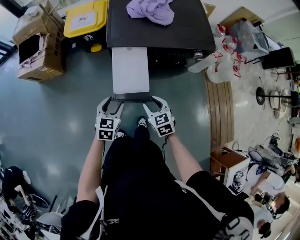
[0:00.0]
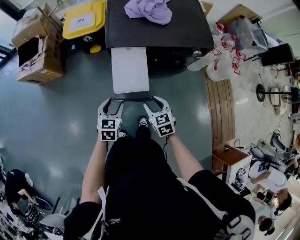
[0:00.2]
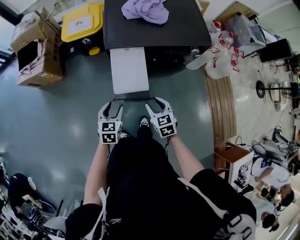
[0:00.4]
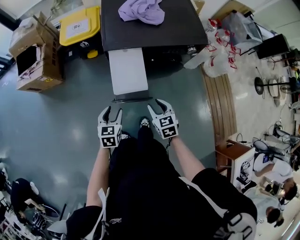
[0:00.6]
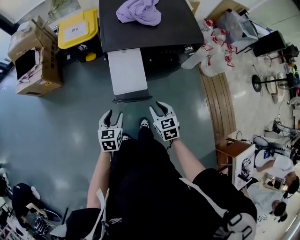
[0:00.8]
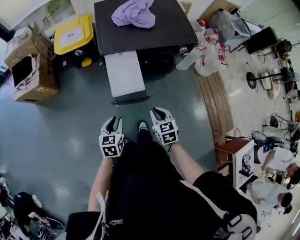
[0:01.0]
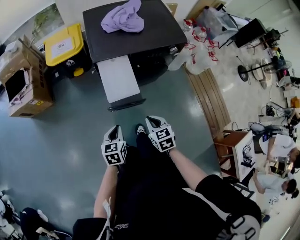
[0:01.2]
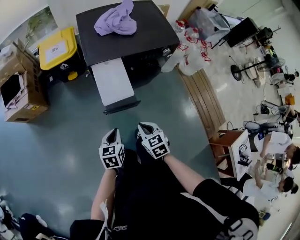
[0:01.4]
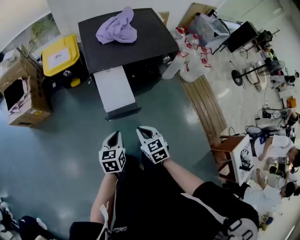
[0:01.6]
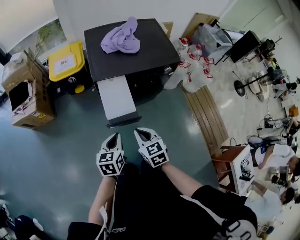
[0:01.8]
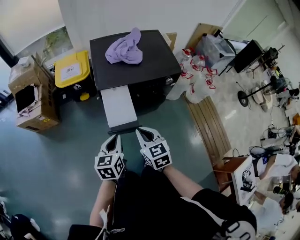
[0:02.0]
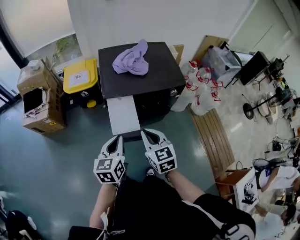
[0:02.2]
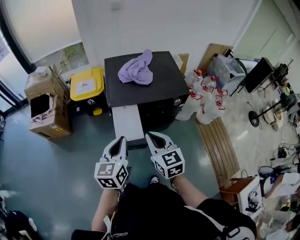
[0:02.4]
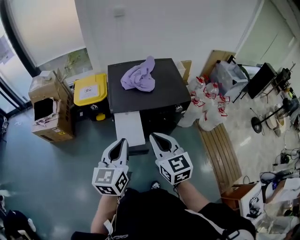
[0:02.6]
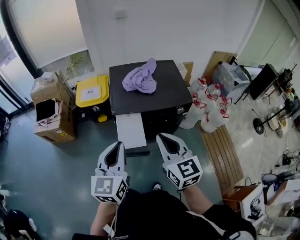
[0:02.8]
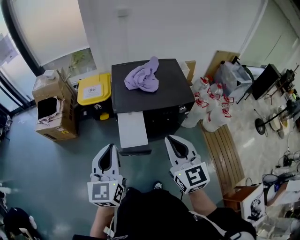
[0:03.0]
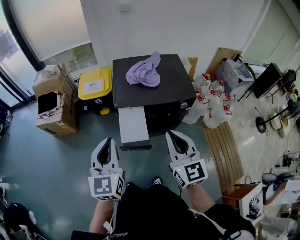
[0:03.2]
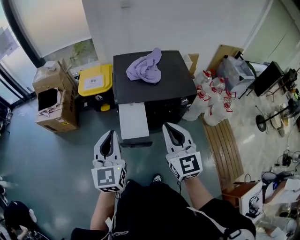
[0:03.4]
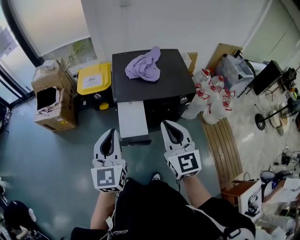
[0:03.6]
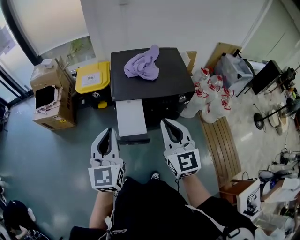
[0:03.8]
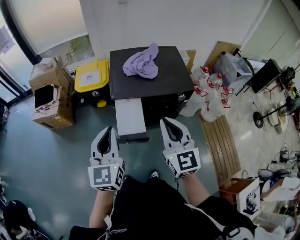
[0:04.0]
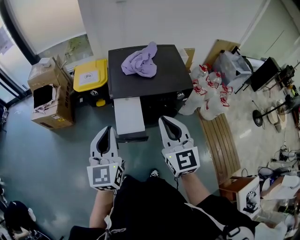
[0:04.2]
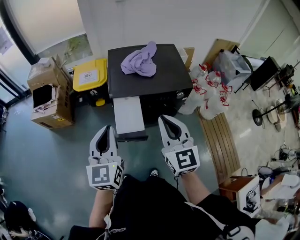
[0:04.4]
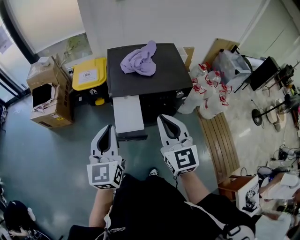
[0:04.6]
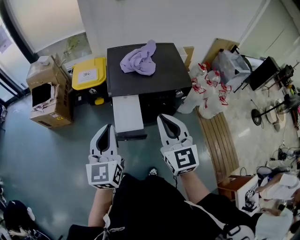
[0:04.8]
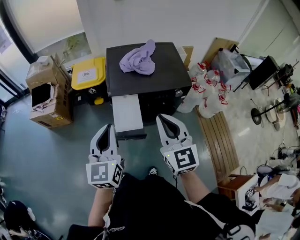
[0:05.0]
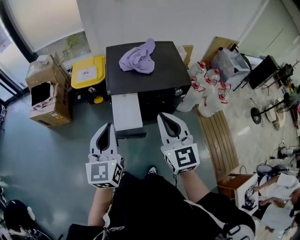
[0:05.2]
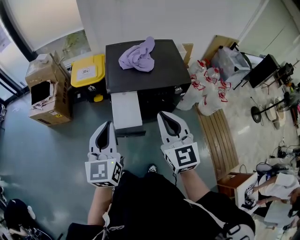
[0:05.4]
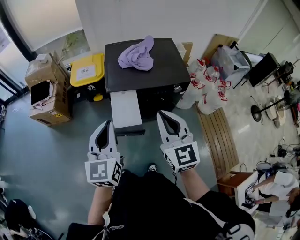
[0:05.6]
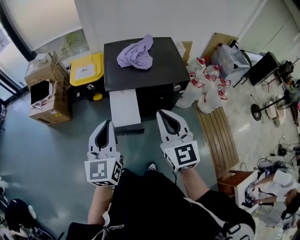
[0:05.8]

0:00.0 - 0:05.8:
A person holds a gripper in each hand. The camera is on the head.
0:00.0 - 0:01.4: The grippers both shift backward by about 10 cm. The left gripper closes up; the right gripper closes up.
0:01.4 - 0:02.8: The grippers both shift upward by approximately 35 cm. The left gripper angles its fingers upward, by roughly 30 degrees; the right gripper tips its fingers upward by some 30 degrees.
0:02.8 - 0:05.8: The grippers make only small movements.

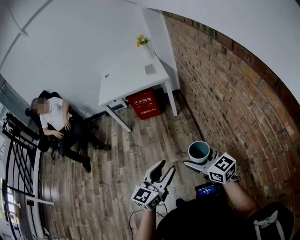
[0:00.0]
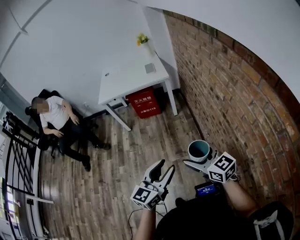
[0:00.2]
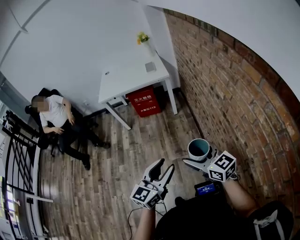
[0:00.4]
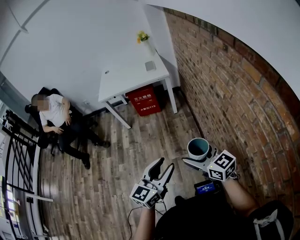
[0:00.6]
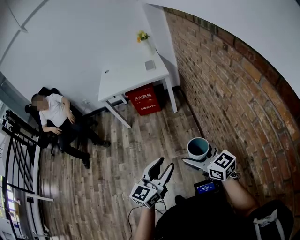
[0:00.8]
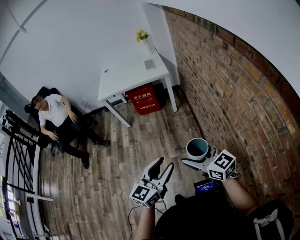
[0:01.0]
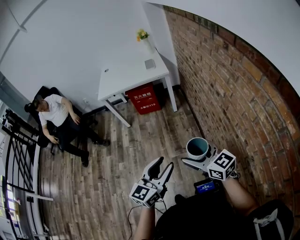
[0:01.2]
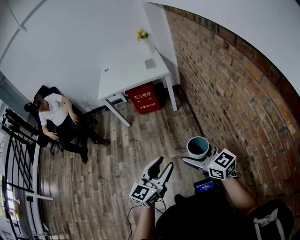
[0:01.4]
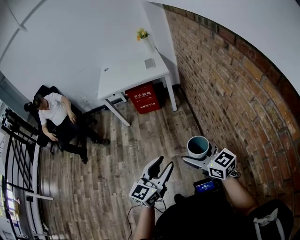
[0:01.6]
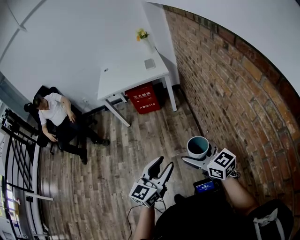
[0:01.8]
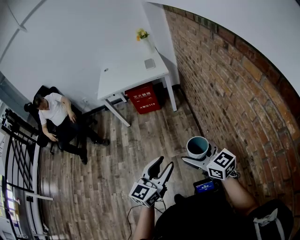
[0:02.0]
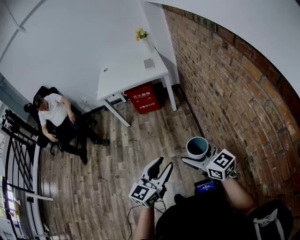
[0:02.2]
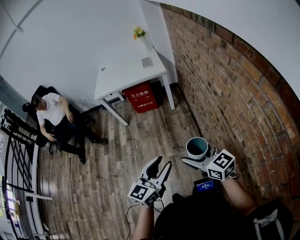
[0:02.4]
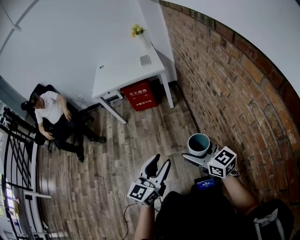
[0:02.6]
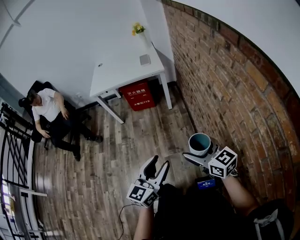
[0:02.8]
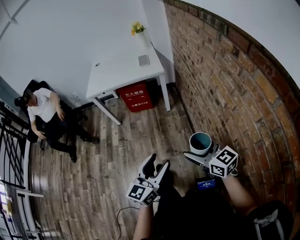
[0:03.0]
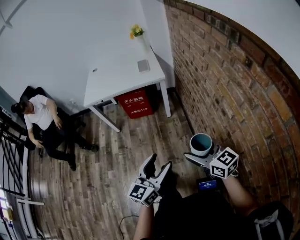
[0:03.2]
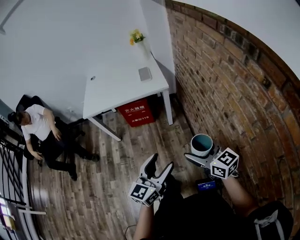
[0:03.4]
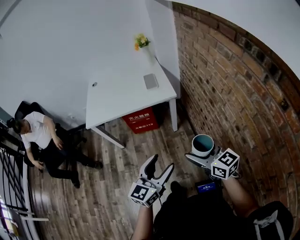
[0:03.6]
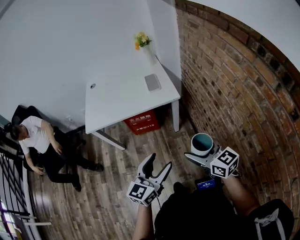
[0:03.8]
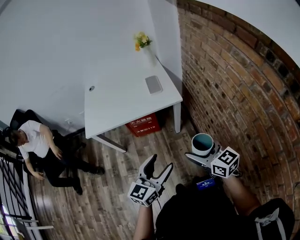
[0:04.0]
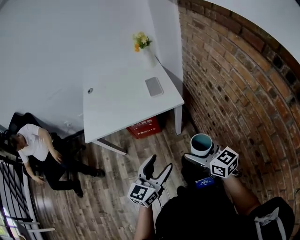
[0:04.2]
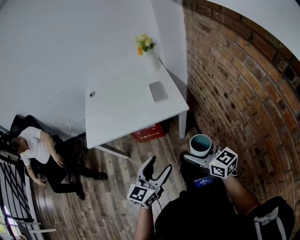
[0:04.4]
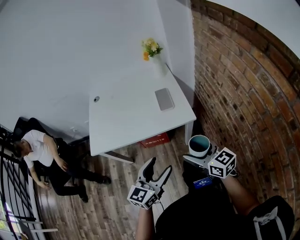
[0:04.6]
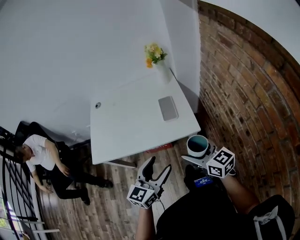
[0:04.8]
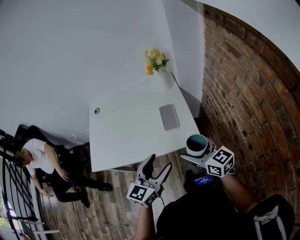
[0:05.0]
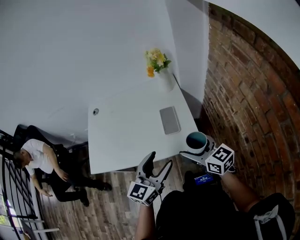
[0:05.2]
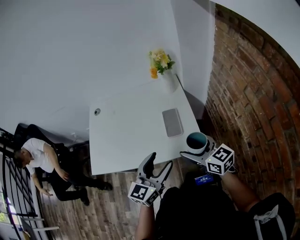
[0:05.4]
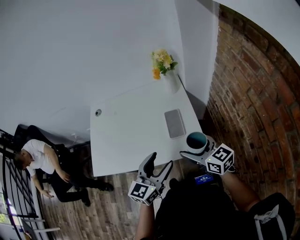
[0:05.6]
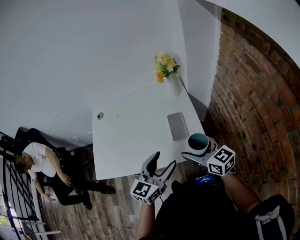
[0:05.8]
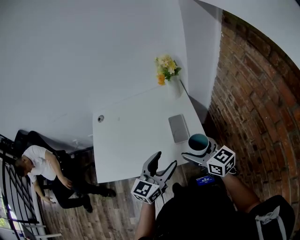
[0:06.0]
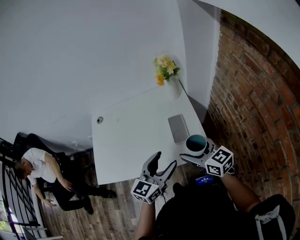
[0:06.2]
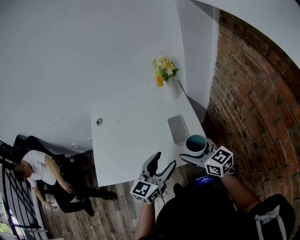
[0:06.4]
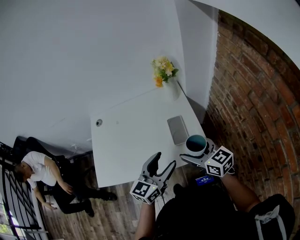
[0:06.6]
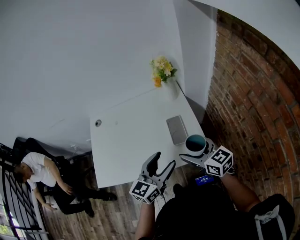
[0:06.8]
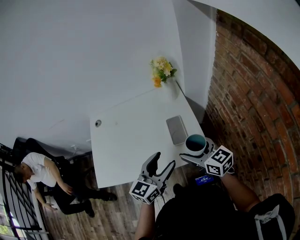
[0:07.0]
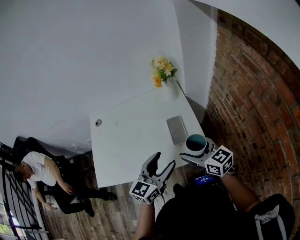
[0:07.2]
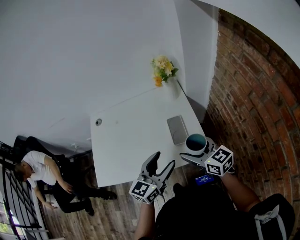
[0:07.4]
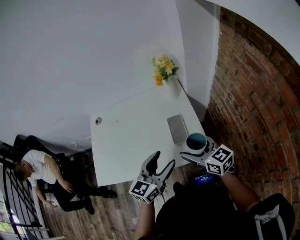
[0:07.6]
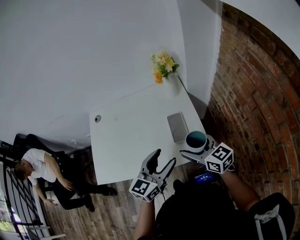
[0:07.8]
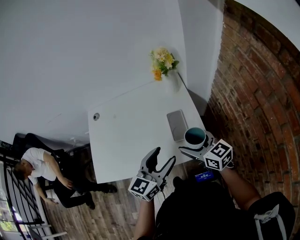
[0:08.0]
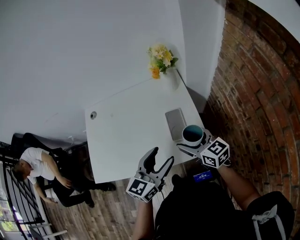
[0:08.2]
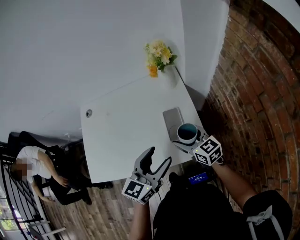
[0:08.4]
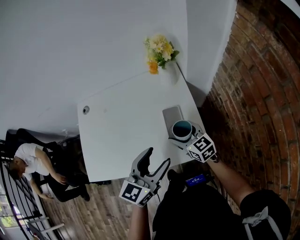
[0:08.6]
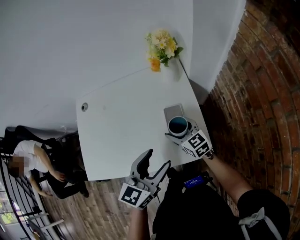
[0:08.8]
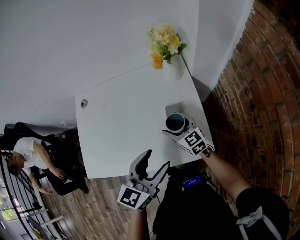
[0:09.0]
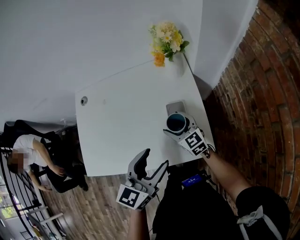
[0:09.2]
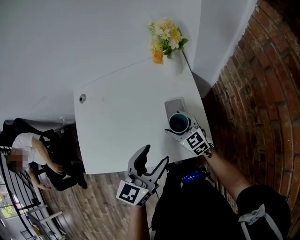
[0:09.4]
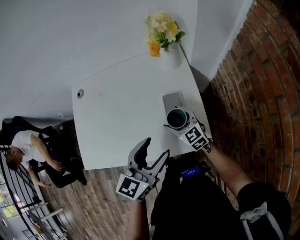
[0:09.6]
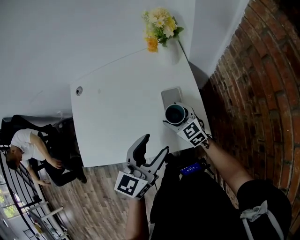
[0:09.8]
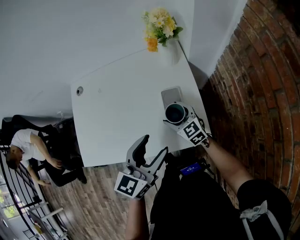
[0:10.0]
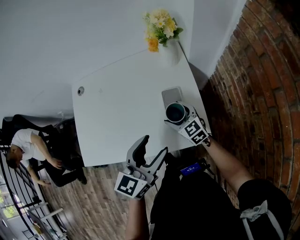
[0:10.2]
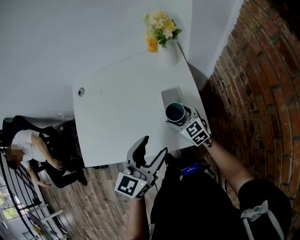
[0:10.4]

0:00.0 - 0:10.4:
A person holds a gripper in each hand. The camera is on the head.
0:00.0 - 0:01.4: Both grippers stay put.
0:01.4 - 0:03.0: The left gripper heads forward, covering about 10 cm. The right gripper goes approximately 10 cm forward and to the right.
0:03.0 - 0:04.4: Both grippers are carried forward, about 50 cm.
0:04.4 - 0:06.0: Both grippers move forward, about 30 cm.
0:06.0 - 0:07.4: The grippers move only a little.
0:07.4 - 0:09.0: The left gripper shifts approximately 5 cm forward. The right gripper shifts some 25 cm downward and forward.
0:09.0 - 0:10.4: There are only small adjustments of the grippers.

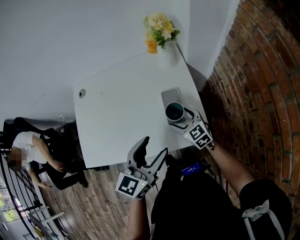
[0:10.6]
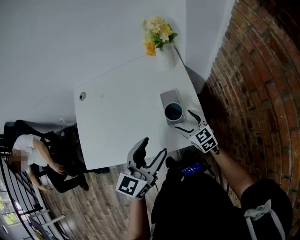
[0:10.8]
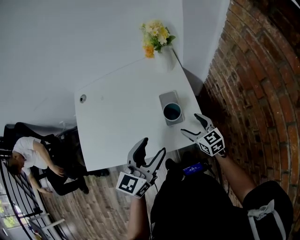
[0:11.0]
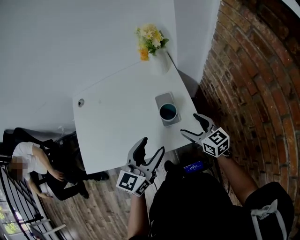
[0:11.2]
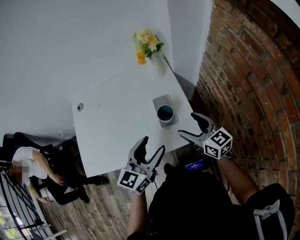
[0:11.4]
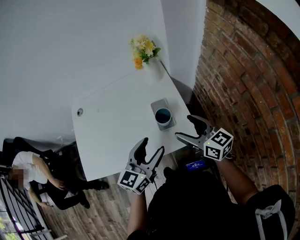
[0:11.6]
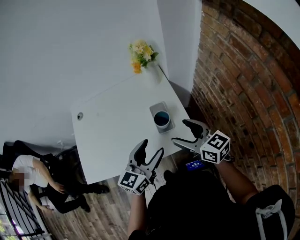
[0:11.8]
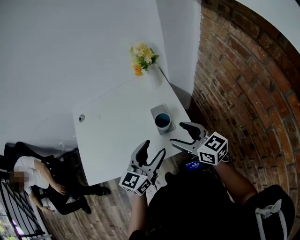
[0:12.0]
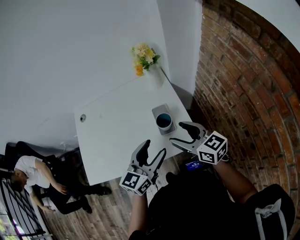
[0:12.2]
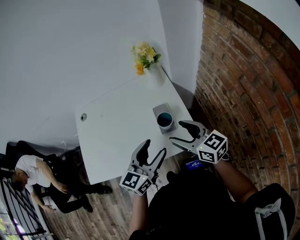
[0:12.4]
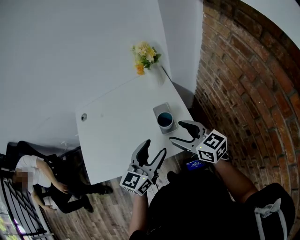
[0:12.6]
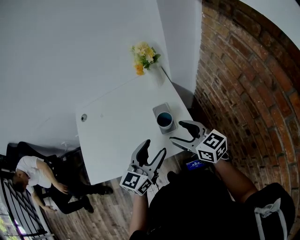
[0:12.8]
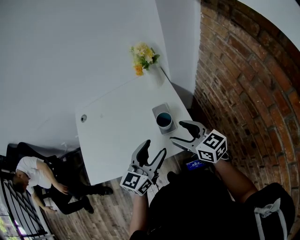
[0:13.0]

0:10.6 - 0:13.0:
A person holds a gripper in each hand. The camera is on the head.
0:10.6 - 0:11.8: The right gripper heads upward and backward, covering roughly 20 cm, and swivels about 30 degrees.
0:11.8 - 0:13.0: The grippers stay close to where they were, moving slightly.

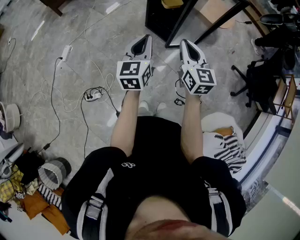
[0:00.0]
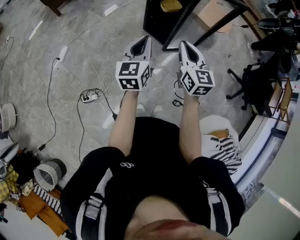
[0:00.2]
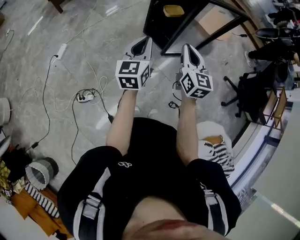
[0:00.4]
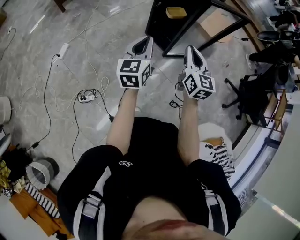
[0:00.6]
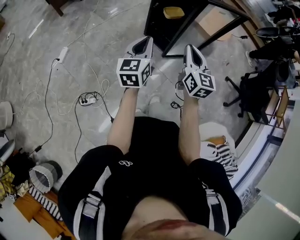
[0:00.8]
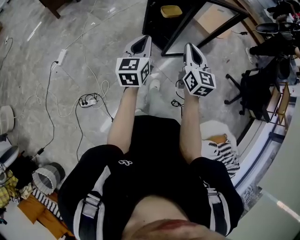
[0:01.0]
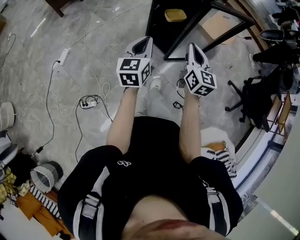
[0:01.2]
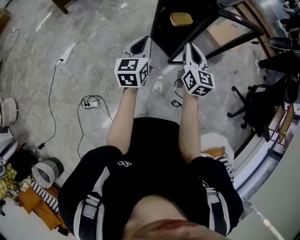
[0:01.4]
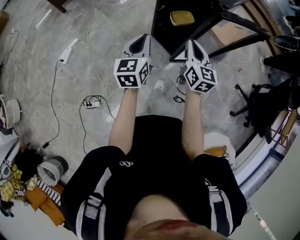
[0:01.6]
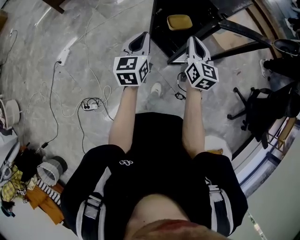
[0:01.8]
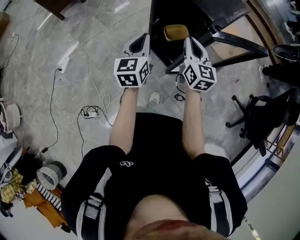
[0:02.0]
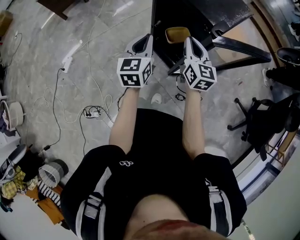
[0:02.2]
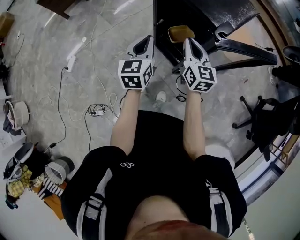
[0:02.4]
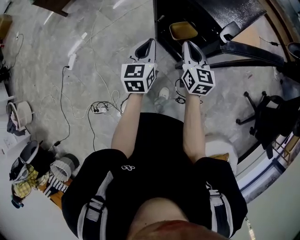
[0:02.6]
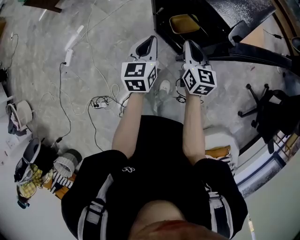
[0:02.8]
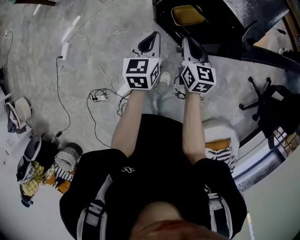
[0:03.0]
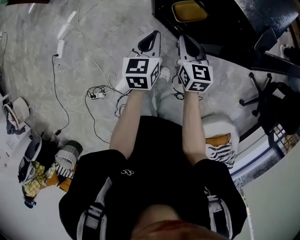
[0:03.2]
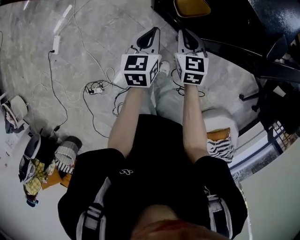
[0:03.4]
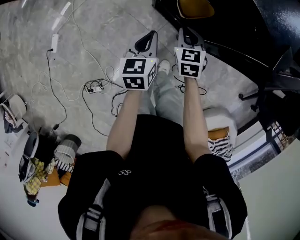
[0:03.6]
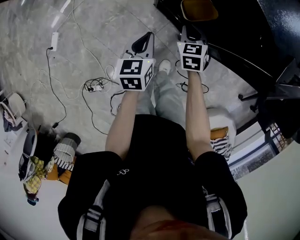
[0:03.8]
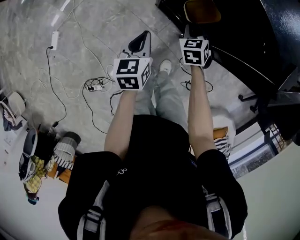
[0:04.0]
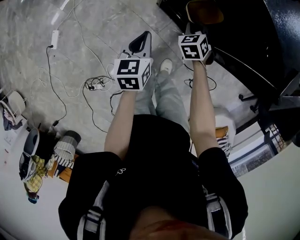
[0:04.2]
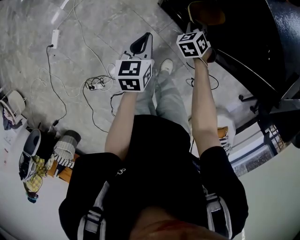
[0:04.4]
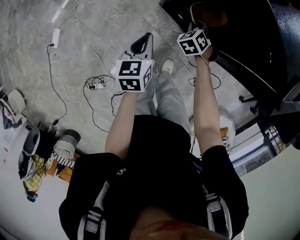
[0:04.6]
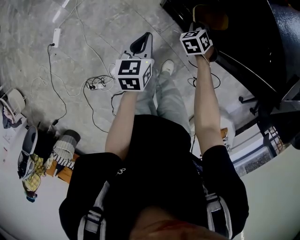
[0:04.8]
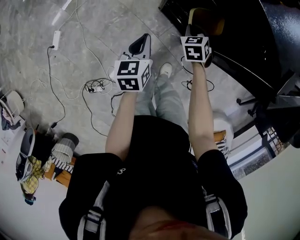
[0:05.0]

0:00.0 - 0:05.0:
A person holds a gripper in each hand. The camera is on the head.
0:00.0 - 0:01.6: Both grippers move forward, some 25 cm.
0:01.6 - 0:03.4: The right gripper moves downward and forward, roughly 30 cm, and turns by some 30 degrees, while the left gripper shifts roughly 30 cm forward and downward, and turns by approximately 20 degrees.
0:03.4 - 0:05.0: The left gripper travels to the left by approximately 10 cm; the right gripper heads downward and forward, covering roughly 10 cm, and changes its angle by approximately 30 degrees.
